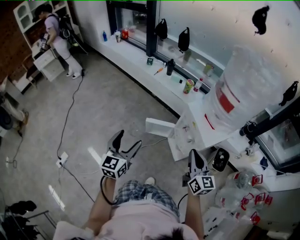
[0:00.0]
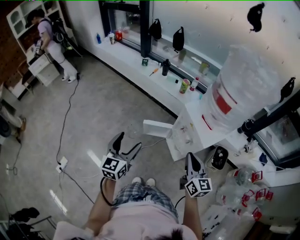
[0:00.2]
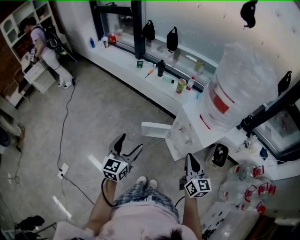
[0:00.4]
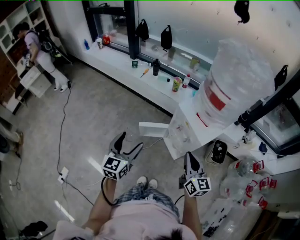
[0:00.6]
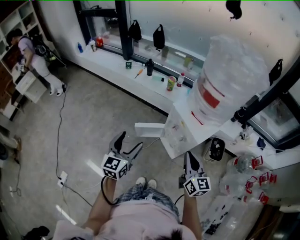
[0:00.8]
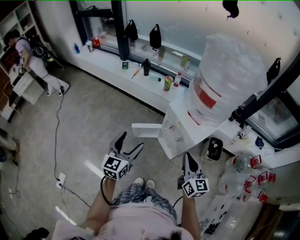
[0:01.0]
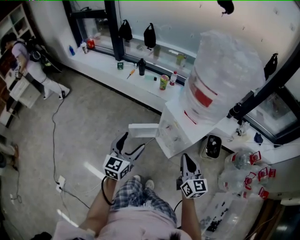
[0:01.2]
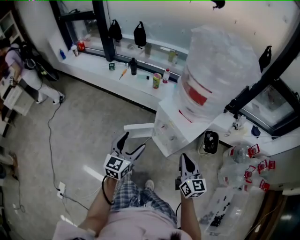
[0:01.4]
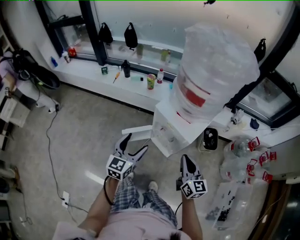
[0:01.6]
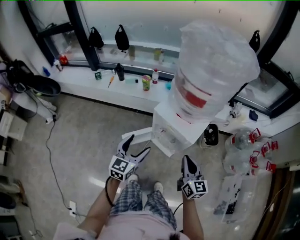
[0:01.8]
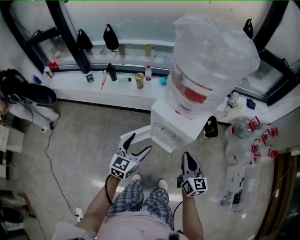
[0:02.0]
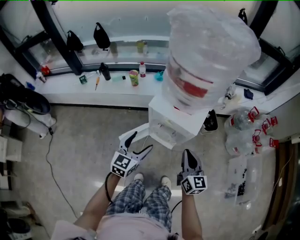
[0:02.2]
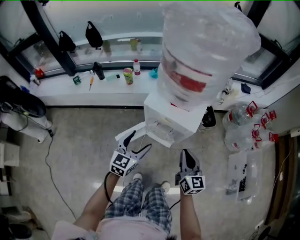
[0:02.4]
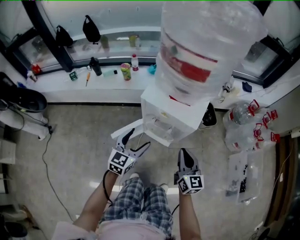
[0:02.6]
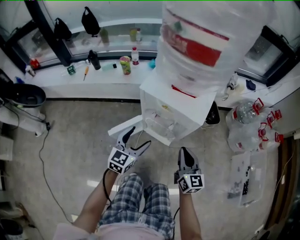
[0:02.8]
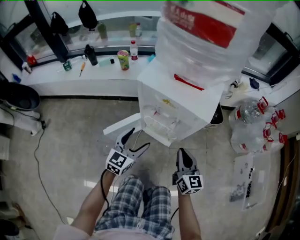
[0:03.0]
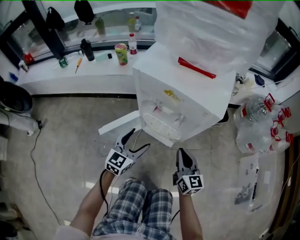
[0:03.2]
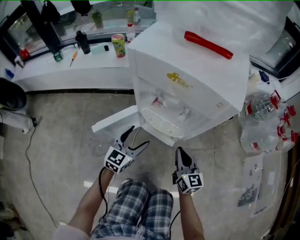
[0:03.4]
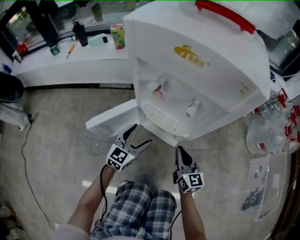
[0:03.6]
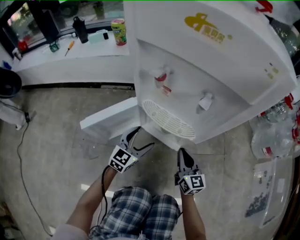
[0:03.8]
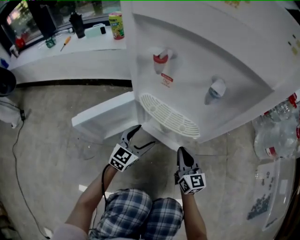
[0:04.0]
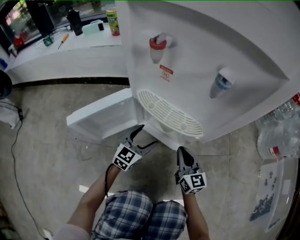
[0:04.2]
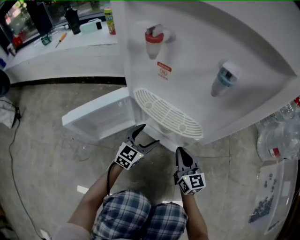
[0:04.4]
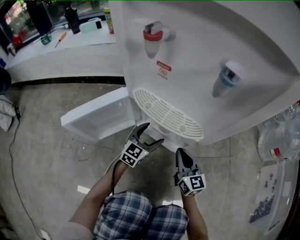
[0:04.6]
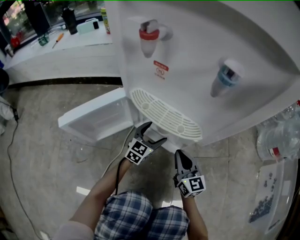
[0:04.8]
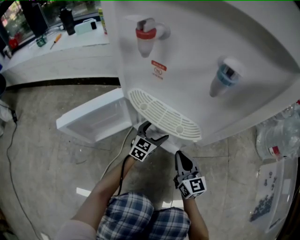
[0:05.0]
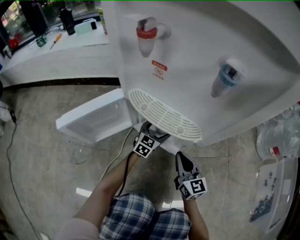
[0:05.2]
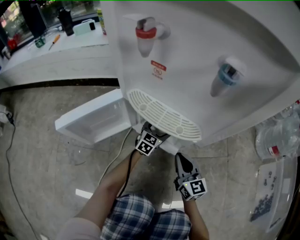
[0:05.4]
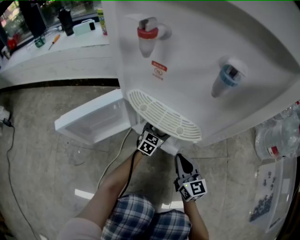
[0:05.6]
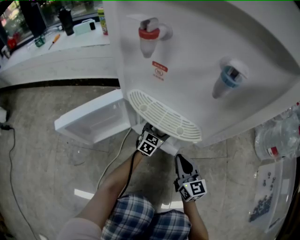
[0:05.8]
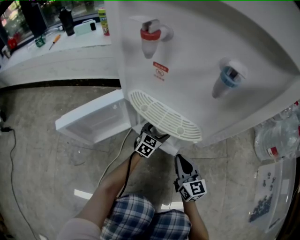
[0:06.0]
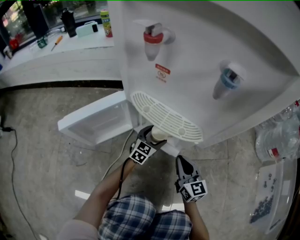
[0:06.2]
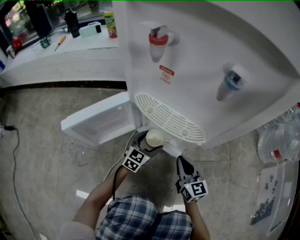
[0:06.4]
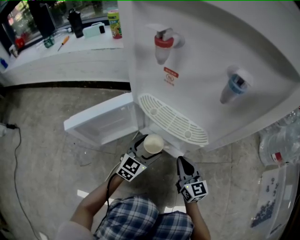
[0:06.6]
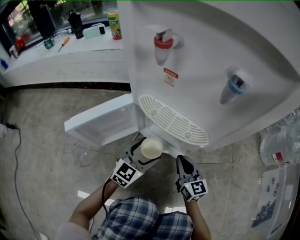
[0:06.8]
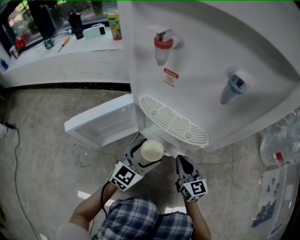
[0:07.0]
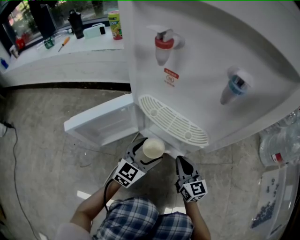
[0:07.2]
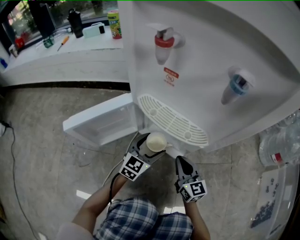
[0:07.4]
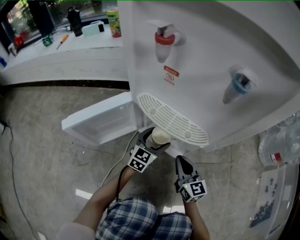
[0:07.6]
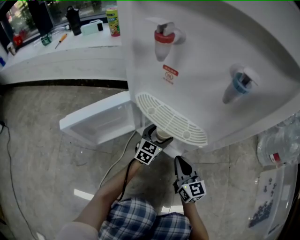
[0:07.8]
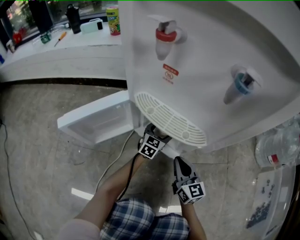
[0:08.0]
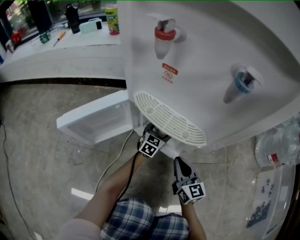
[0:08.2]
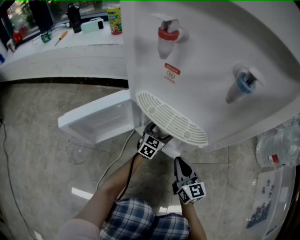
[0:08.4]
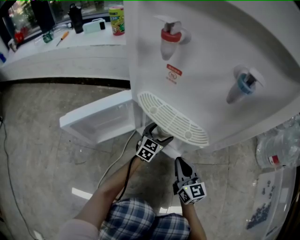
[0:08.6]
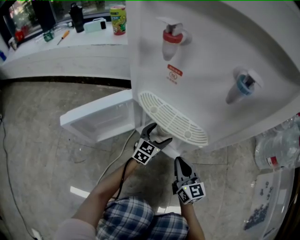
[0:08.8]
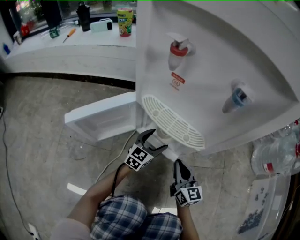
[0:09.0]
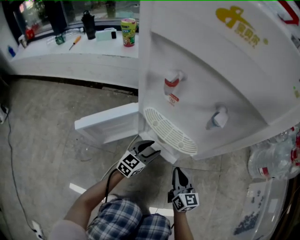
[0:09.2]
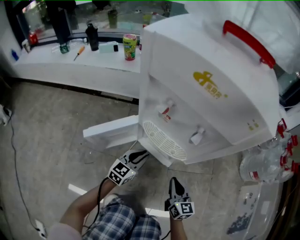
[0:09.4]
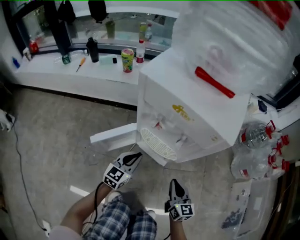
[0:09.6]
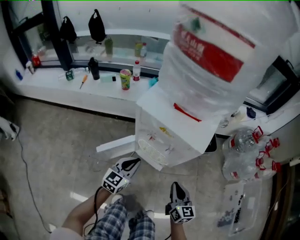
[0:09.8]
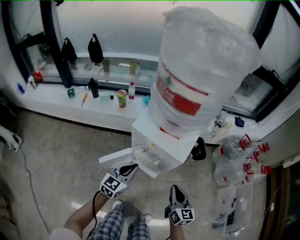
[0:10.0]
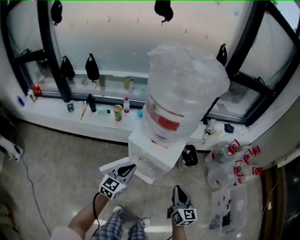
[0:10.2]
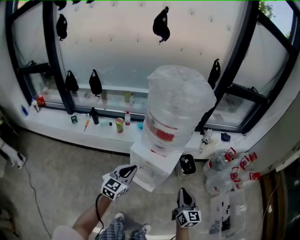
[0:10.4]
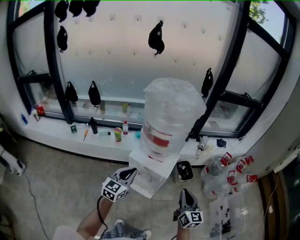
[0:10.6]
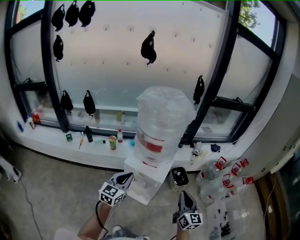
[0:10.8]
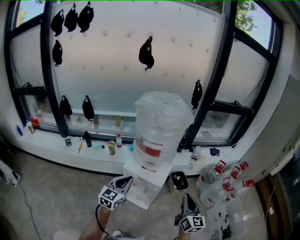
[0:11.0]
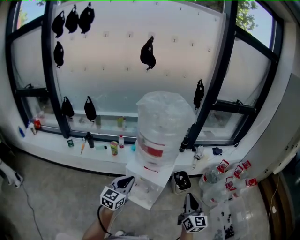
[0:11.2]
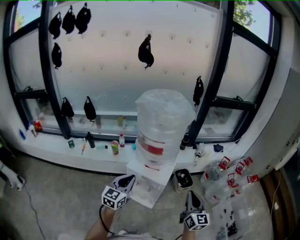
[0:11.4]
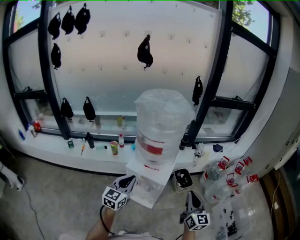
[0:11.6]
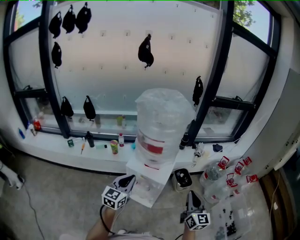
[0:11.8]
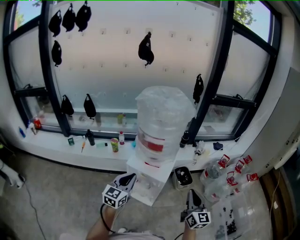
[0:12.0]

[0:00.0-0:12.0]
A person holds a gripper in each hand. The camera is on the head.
0:00.0 to 0:01.6: The right gripper moves roughly 5 cm, and turns by about 20 degrees. The left gripper ends up about 20 cm from where it was, and rotates approximately 30 degrees.
0:01.6 to 0:03.0: Both grippers move downward, approximately 30 cm. The left gripper turns by approximately 30 degrees.
0:03.0 to 0:04.4: Both grippers travel together downward, approximately 40 cm.
0:04.4 to 0:06.0: The left gripper goes some 15 cm downward, forward and to the right.
0:06.0 to 0:07.6: The left gripper moves upward and backward, about 10 cm.
0:07.6 to 0:09.0: The left gripper moves some 5 cm forward and comes back.
0:09.0 to 0:10.4: The two grippers go approximately 80 cm upward. The left gripper closes up.
0:10.4 to 0:12.0: The right gripper is displaced upward and to the right by about 10 cm. Meanwhile the left gripper shifts roughly 5 cm upward.

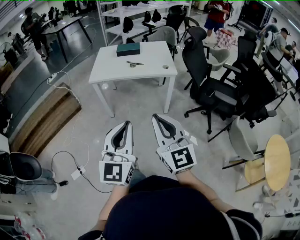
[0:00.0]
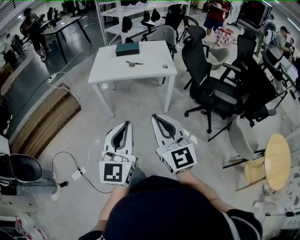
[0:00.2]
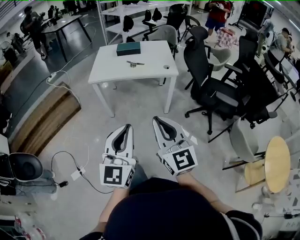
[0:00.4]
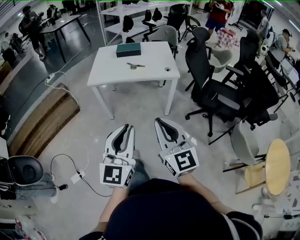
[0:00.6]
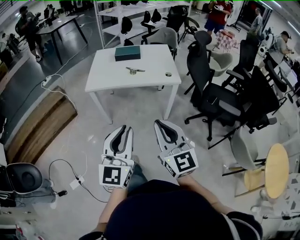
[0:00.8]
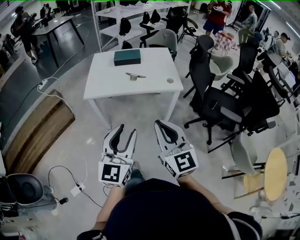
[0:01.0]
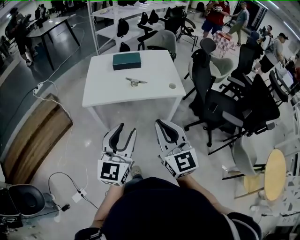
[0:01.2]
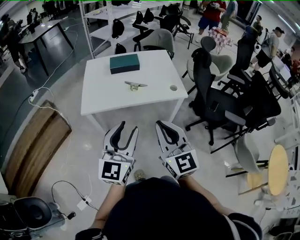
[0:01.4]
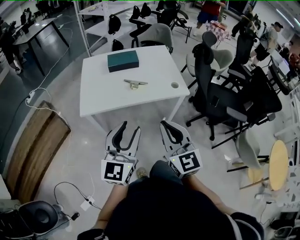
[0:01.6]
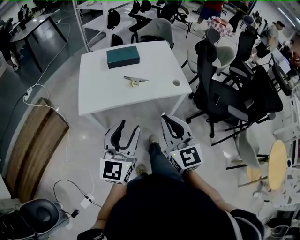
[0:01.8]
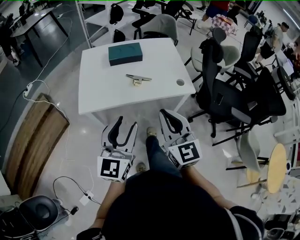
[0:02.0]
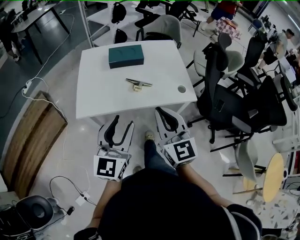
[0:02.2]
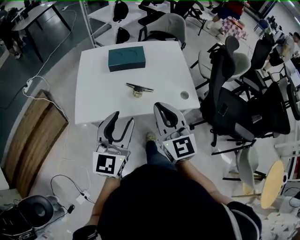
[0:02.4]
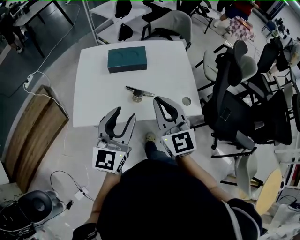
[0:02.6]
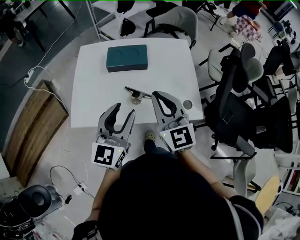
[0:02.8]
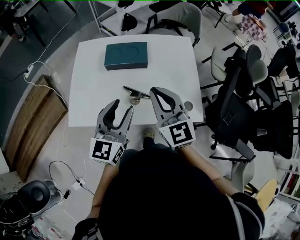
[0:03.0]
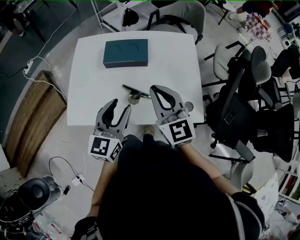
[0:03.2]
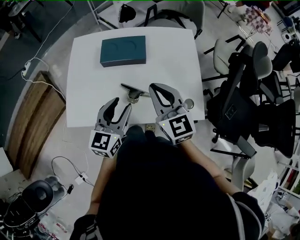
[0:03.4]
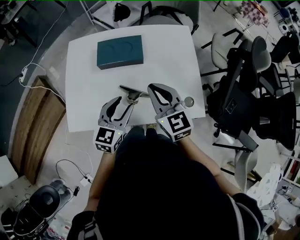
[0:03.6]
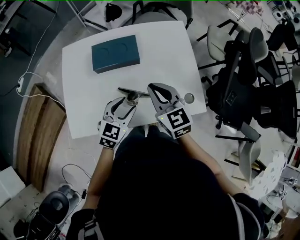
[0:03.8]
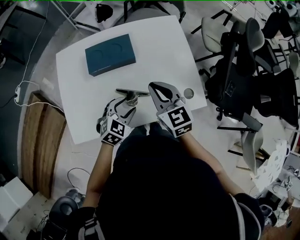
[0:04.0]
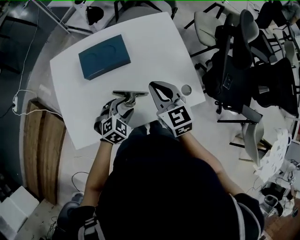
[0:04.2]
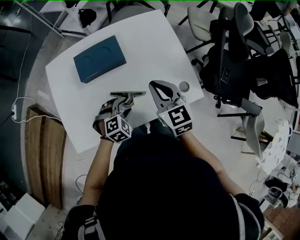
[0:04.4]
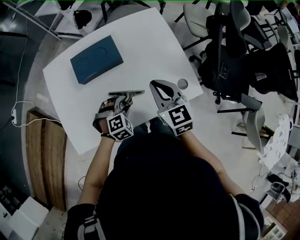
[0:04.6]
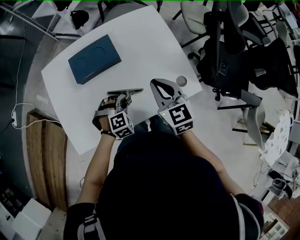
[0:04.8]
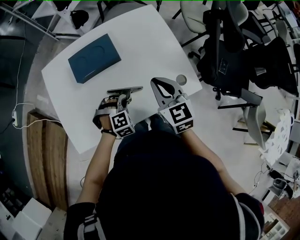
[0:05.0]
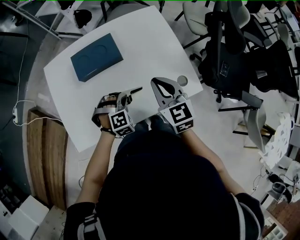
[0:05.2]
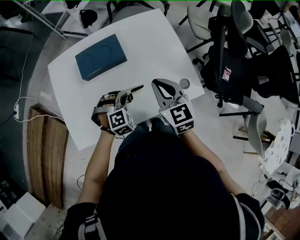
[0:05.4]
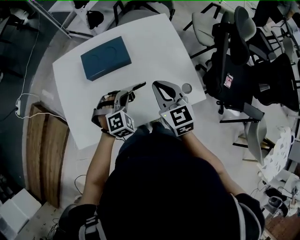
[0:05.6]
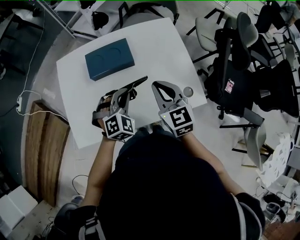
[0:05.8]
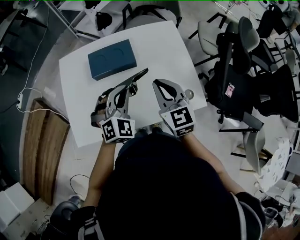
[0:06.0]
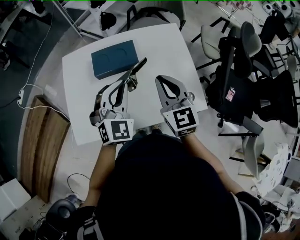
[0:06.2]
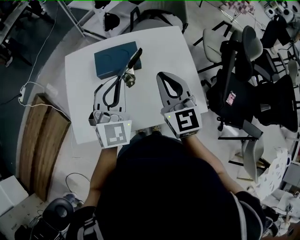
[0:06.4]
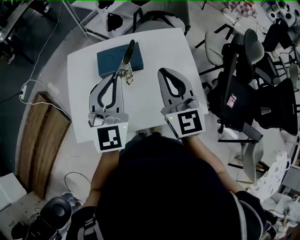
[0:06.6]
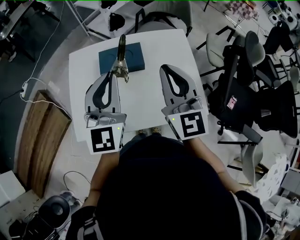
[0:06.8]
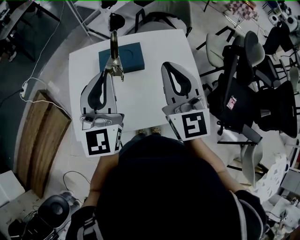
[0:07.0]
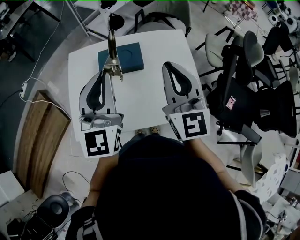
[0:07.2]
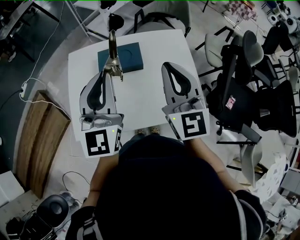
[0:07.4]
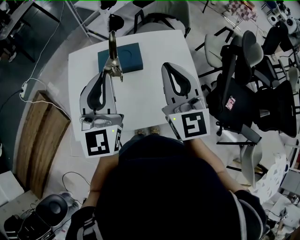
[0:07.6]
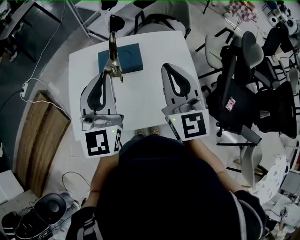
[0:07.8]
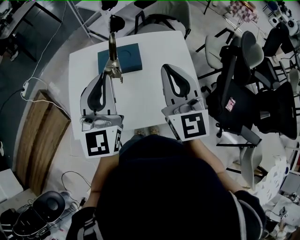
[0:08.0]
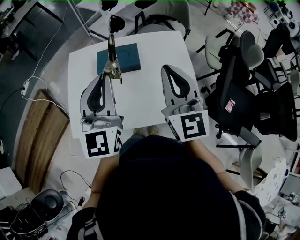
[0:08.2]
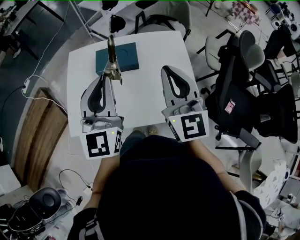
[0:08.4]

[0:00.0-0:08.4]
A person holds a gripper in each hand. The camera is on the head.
0:00.0 to 0:01.4: Both grippers move forward, roughly 35 cm. The left gripper opens up.
0:01.4 to 0:02.8: Both grippers move forward, about 40 cm.
0:02.8 to 0:04.2: The right gripper travels downward and forward by roughly 15 cm, and swivels about 30 degrees. The left gripper heads downward and forward, covering about 25 cm, and angles its fingers downward, by approximately 50 degrees.
0:04.2 to 0:05.6: The left gripper moves some 5 cm, swivels about 30 degrees, and closes its fingers.
0:05.6 to 0:07.0: The right gripper travels upward by approximately 20 cm, and turns by roughly 30 degrees, while the left gripper is displaced upward by about 30 cm, and tilts its fingers roughly 60 degrees upward.
0:07.0 to 0:08.4: The left gripper moves about 5 cm. The right gripper changes place by approximately 5 cm.

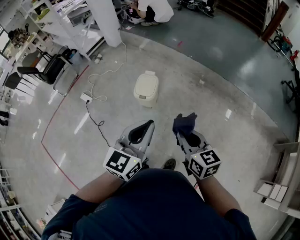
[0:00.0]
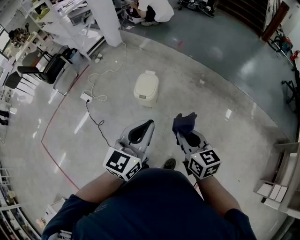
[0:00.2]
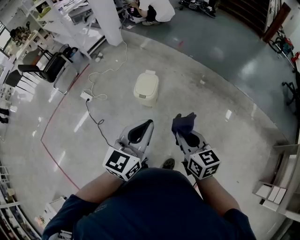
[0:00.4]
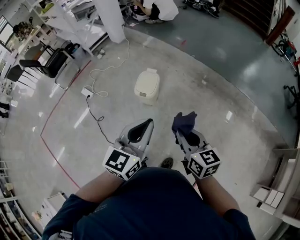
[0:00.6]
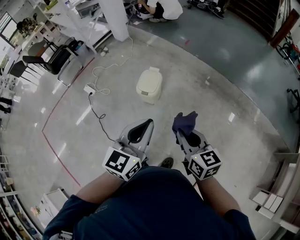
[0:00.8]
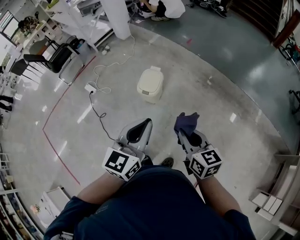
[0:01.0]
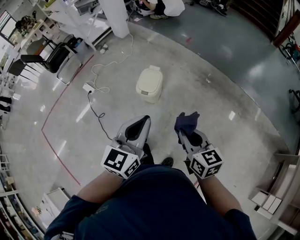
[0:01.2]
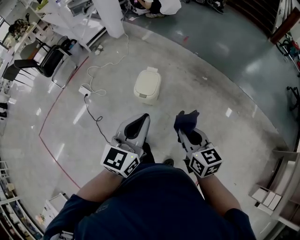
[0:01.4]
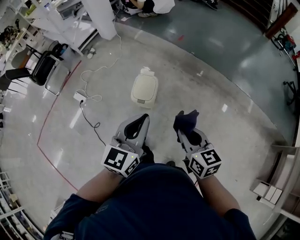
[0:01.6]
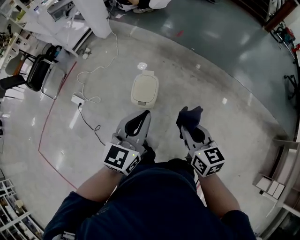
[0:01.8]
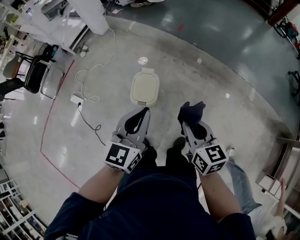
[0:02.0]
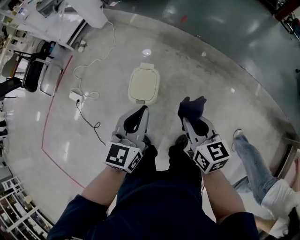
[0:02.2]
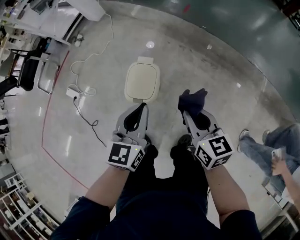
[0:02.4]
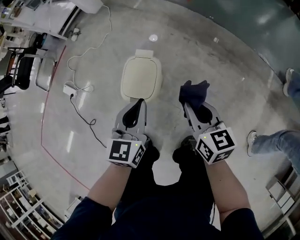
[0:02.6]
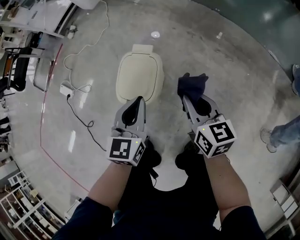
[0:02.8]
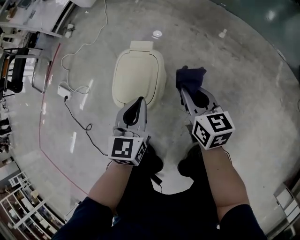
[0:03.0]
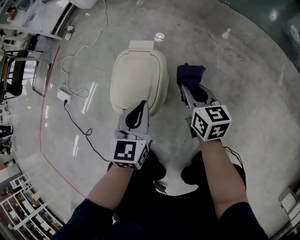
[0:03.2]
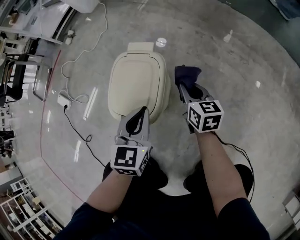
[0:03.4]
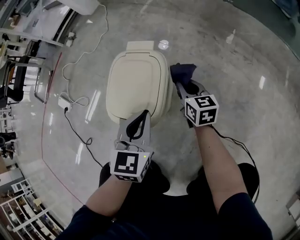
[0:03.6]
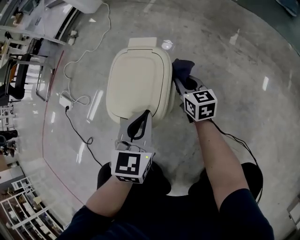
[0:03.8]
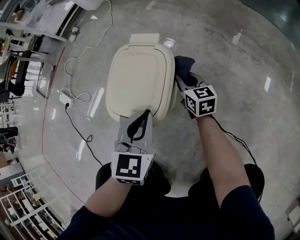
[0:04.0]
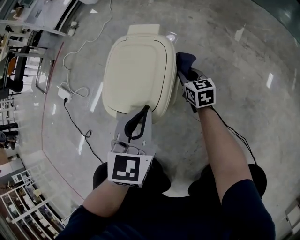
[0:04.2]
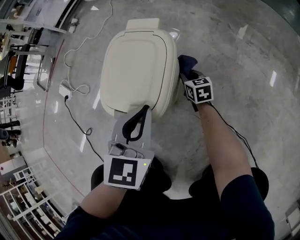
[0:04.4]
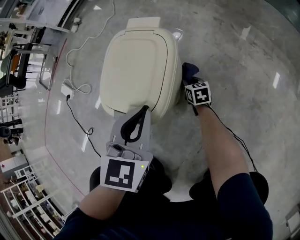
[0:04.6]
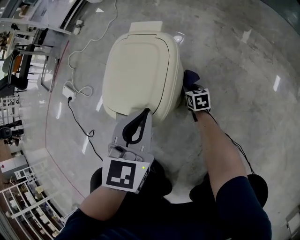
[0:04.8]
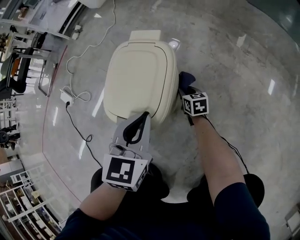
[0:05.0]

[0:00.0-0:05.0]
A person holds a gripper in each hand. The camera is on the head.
0:00.0 to 0:01.6: Both grippers move forward, roughly 15 cm.
0:01.6 to 0:03.4: The right gripper moves downward and forward, roughly 80 cm; the left gripper shifts about 60 cm downward, and turns by some 30 degrees.
0:03.4 to 0:05.0: The right gripper goes roughly 25 cm downward.
